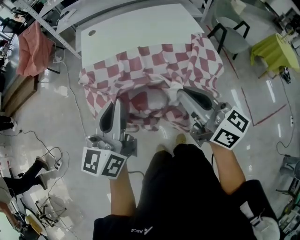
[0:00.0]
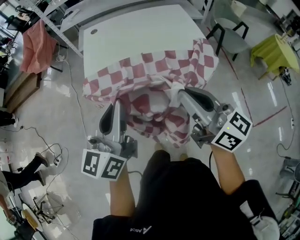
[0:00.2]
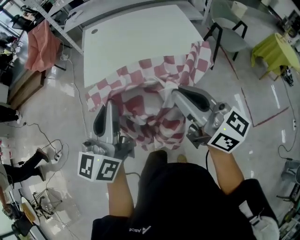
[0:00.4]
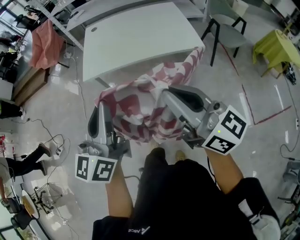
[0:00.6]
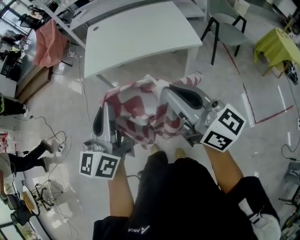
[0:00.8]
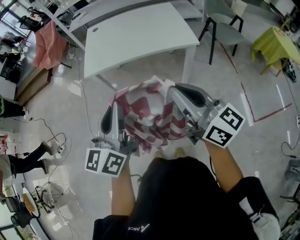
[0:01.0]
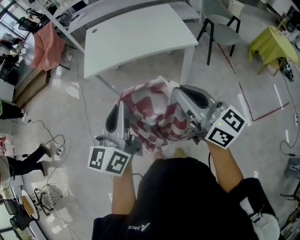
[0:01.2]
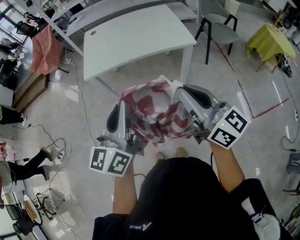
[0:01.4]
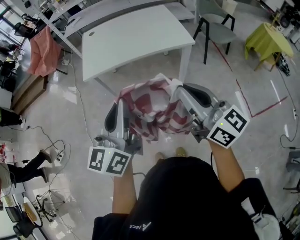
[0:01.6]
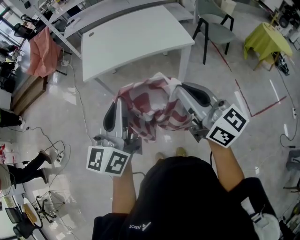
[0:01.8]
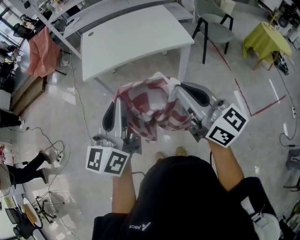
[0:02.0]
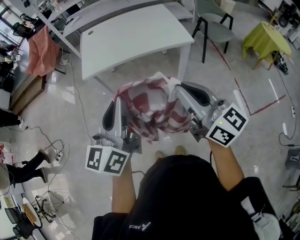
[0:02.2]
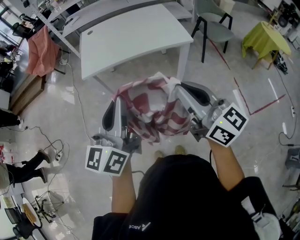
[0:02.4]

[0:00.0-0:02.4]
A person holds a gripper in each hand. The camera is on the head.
0:00.0 to 0:01.2: The grippers both shift backward by some 25 cm.
0:01.2 to 0:02.4: The grippers move only a little.

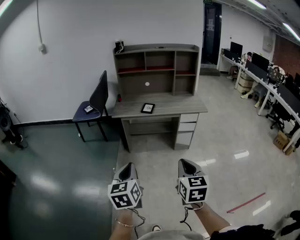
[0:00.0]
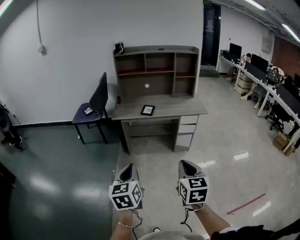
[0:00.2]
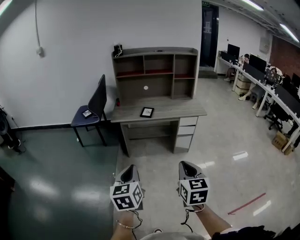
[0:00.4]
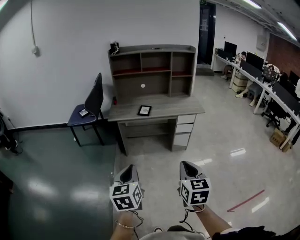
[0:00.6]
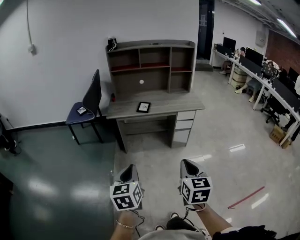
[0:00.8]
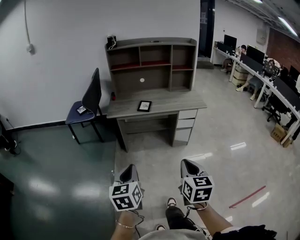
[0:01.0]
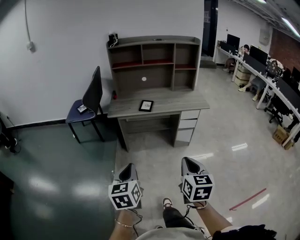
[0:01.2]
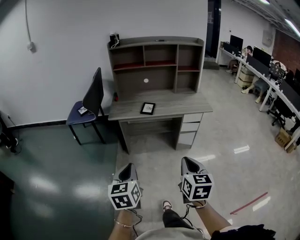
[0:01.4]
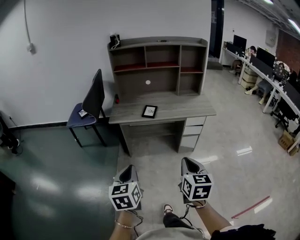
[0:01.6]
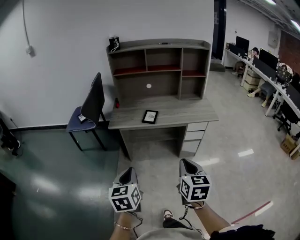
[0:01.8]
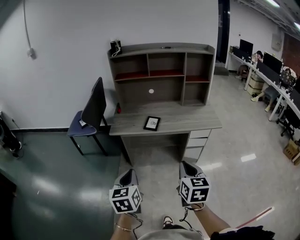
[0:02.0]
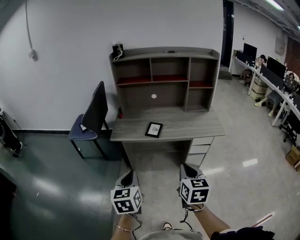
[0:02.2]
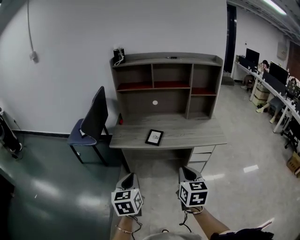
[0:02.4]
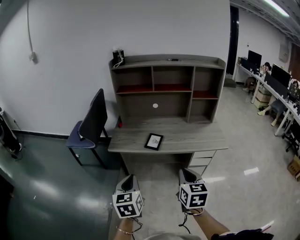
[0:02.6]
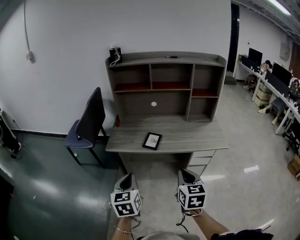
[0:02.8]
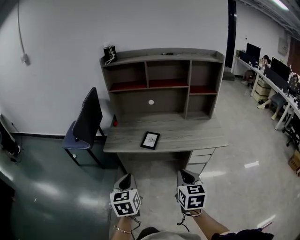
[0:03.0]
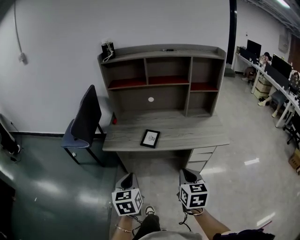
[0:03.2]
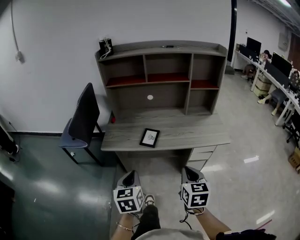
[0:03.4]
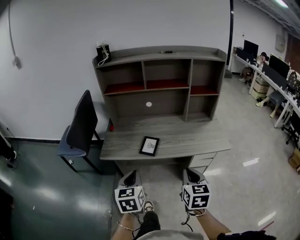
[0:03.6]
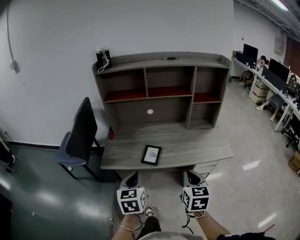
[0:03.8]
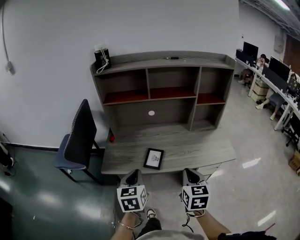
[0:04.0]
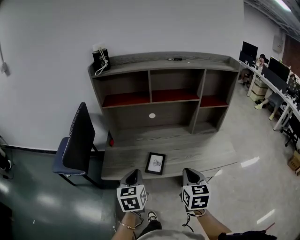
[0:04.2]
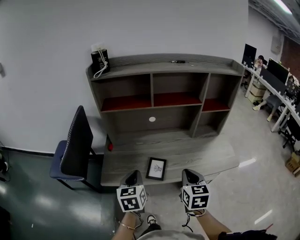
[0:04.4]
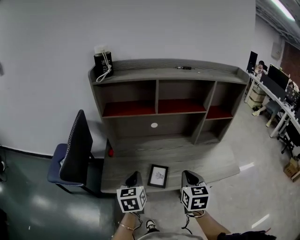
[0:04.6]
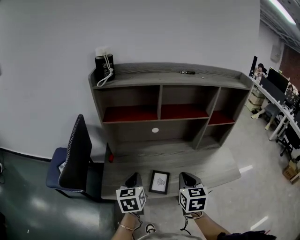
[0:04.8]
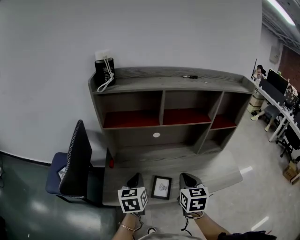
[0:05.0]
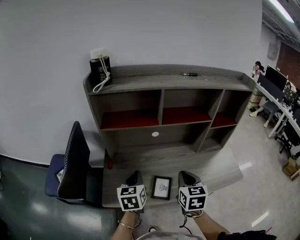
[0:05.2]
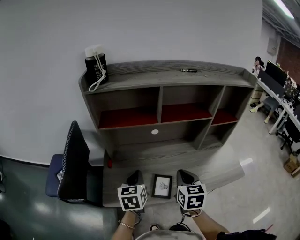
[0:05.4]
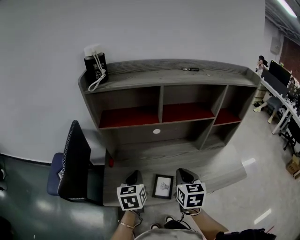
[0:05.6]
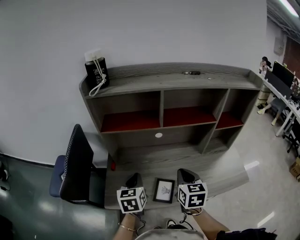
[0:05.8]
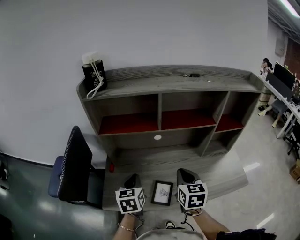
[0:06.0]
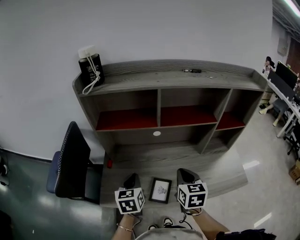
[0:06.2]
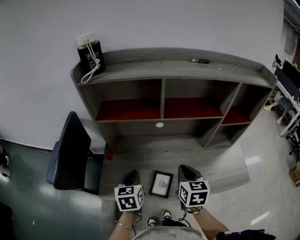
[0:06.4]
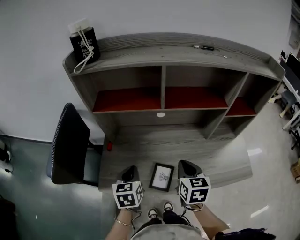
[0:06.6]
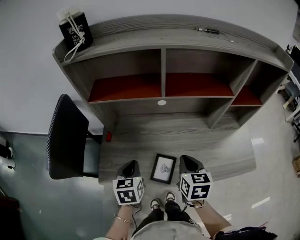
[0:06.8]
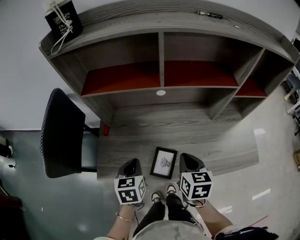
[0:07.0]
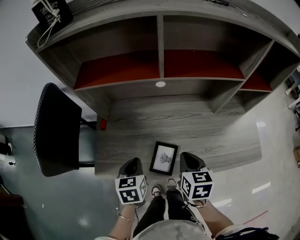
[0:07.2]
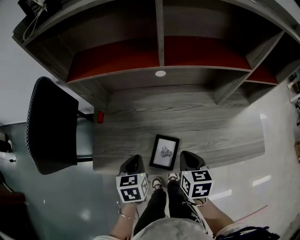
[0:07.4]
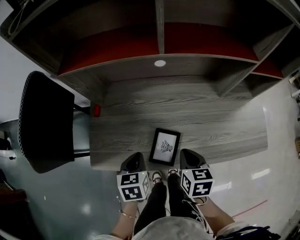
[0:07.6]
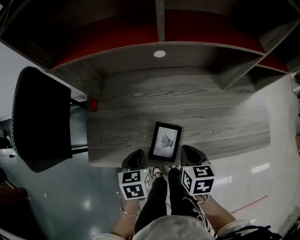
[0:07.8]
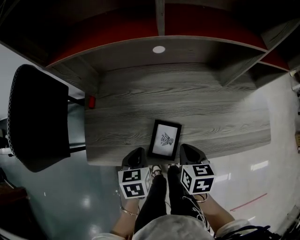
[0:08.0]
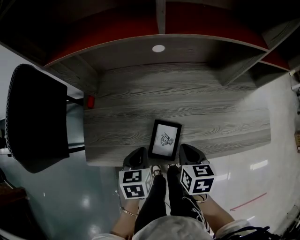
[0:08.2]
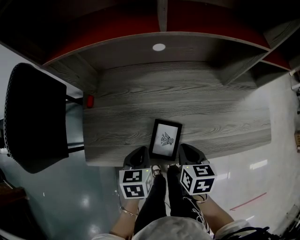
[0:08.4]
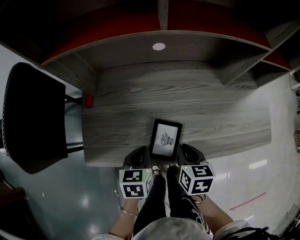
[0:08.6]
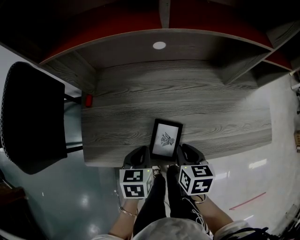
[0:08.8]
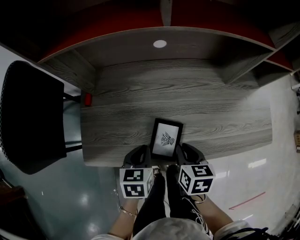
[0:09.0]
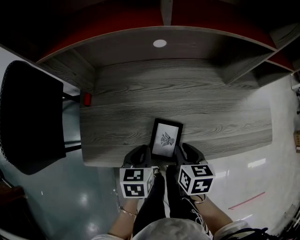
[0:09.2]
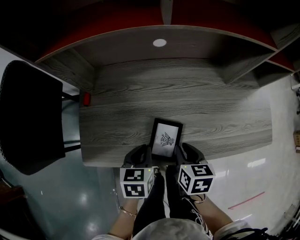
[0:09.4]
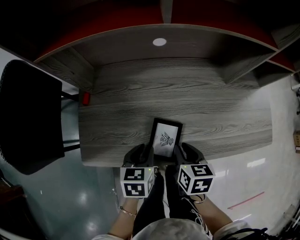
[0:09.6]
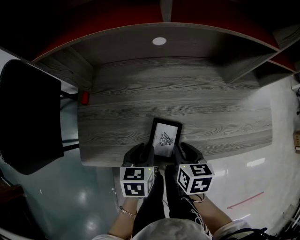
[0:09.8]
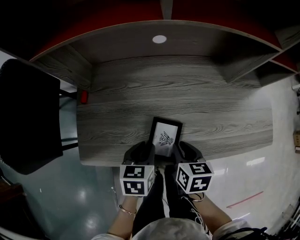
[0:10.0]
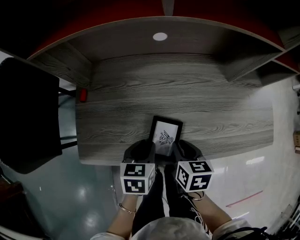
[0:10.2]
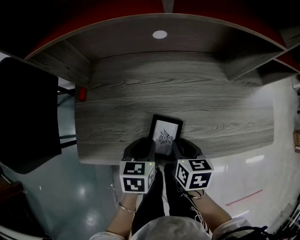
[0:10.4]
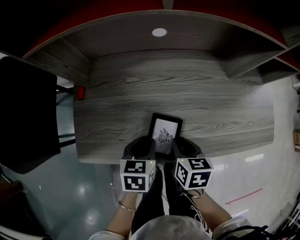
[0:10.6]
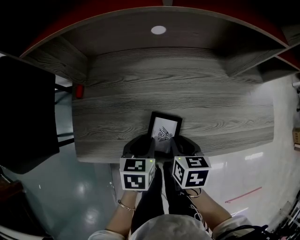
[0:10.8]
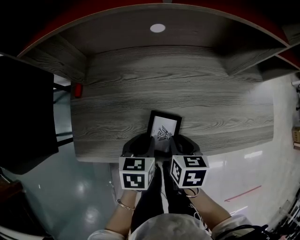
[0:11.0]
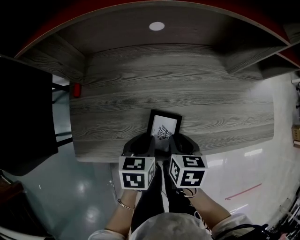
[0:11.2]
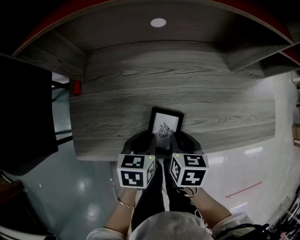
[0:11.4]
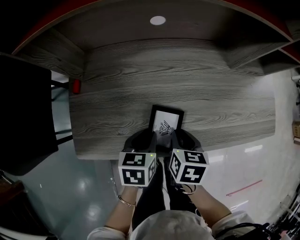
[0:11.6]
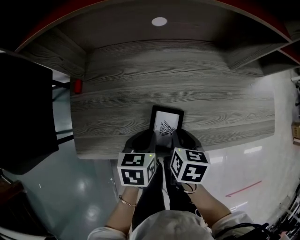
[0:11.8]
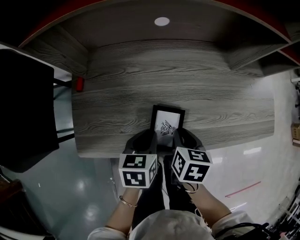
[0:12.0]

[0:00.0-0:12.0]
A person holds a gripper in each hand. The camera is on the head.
0:00.0 to 0:01.6: Both grippers travel together forward, about 15 cm.
0:01.6 to 0:03.0: Both grippers move forward, about 25 cm.
0:03.0 to 0:04.4: The two grippers go some 25 cm forward.
0:04.4 to 0:06.0: The two grippers go approximately 15 cm forward.
0:06.0 to 0:07.6: Both grippers travel together downward, about 20 cm. The right gripper rotates some 30 degrees, while the left gripper turns by roughly 20 degrees.
0:07.6 to 0:09.0: The right gripper shifts by about 5 cm.
0:09.0 to 0:10.4: The left gripper opens.
0:10.4 to 0:12.0: The grippers stay close to where they were, moving slightly.

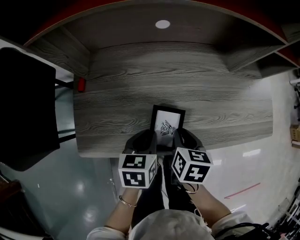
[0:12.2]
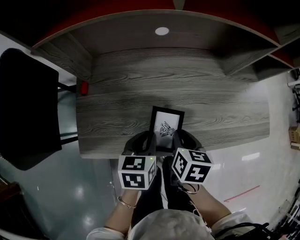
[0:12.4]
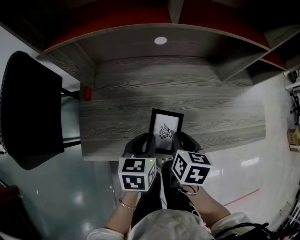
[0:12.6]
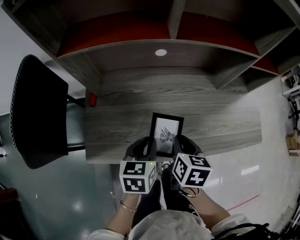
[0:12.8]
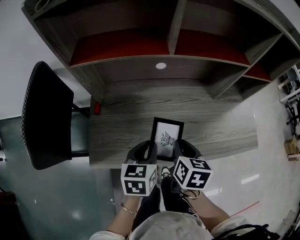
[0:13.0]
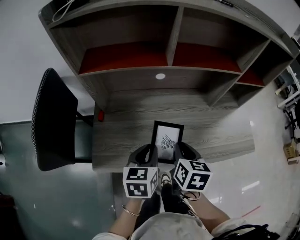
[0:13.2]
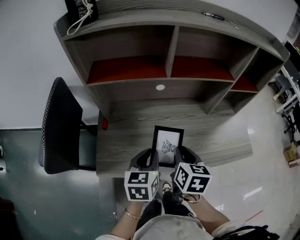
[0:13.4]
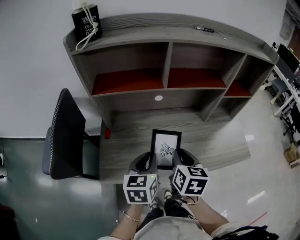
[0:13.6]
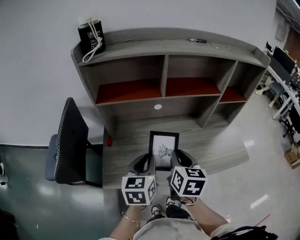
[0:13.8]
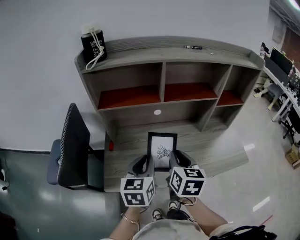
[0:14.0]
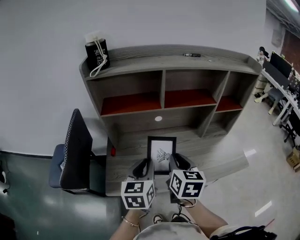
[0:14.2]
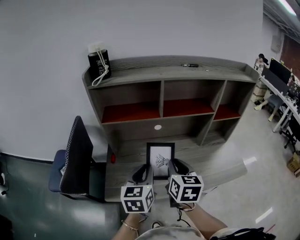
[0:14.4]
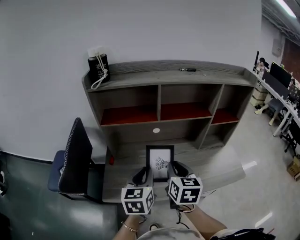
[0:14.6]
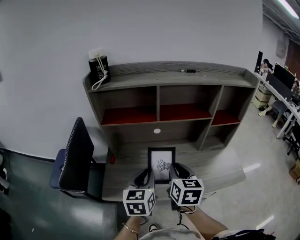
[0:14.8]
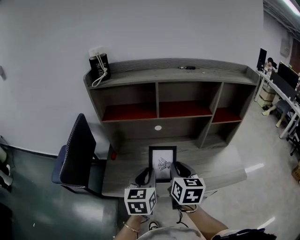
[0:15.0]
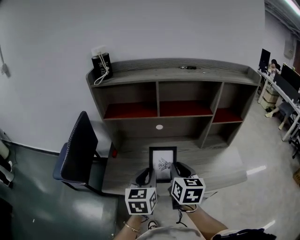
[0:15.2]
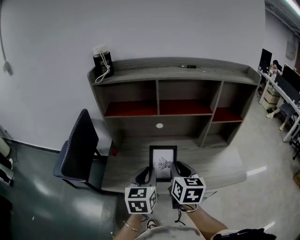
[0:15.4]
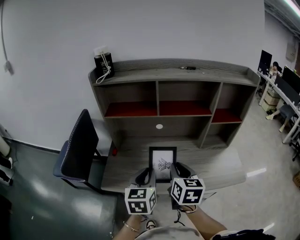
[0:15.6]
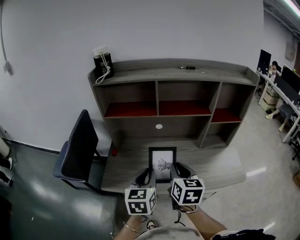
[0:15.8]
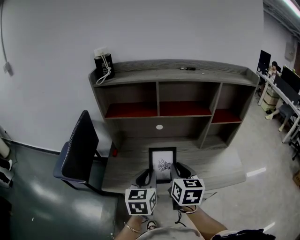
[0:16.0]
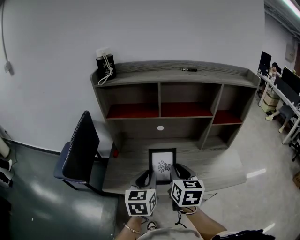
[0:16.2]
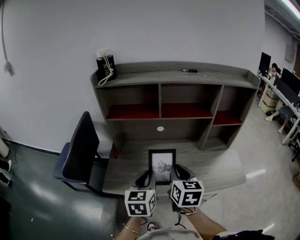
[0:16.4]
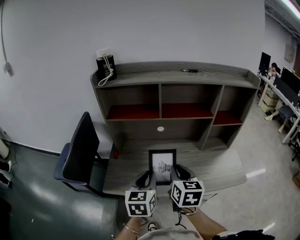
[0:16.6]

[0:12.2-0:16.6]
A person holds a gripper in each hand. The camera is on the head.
0:12.2 to 0:13.6: The two grippers go approximately 20 cm upward. The left gripper turns by about 20 degrees; the right gripper changes its angle by some 20 degrees.
0:13.6 to 0:15.2: Both grippers travel together upward, roughly 5 cm.
0:15.2 to 0:16.6: The grippers move only a little.

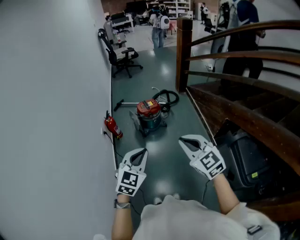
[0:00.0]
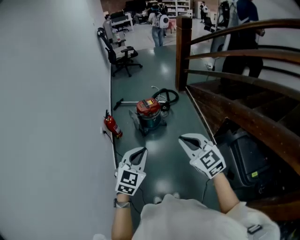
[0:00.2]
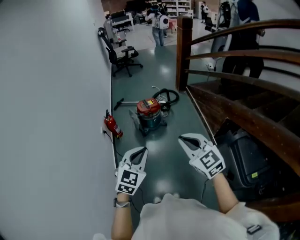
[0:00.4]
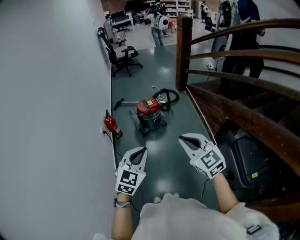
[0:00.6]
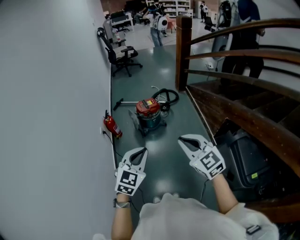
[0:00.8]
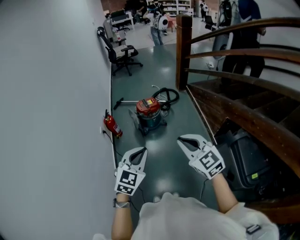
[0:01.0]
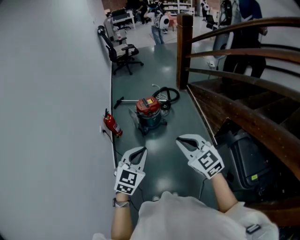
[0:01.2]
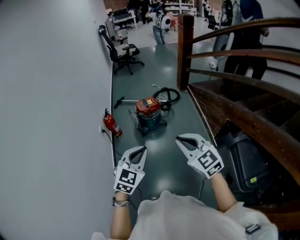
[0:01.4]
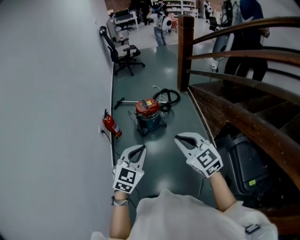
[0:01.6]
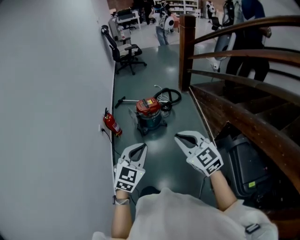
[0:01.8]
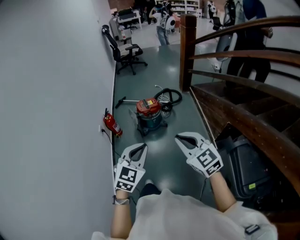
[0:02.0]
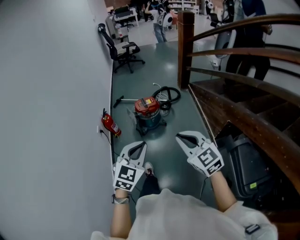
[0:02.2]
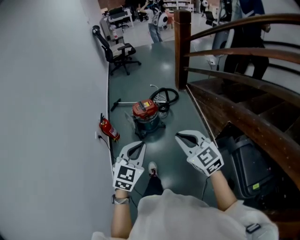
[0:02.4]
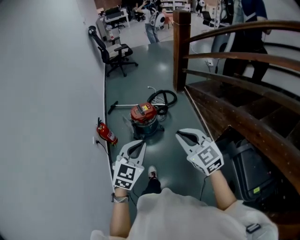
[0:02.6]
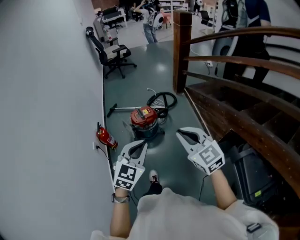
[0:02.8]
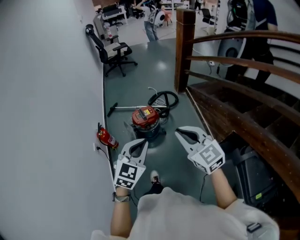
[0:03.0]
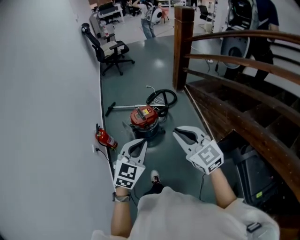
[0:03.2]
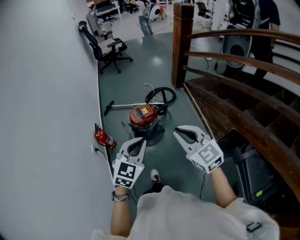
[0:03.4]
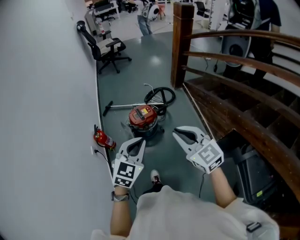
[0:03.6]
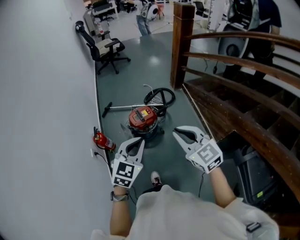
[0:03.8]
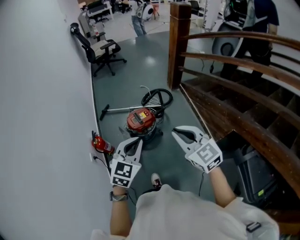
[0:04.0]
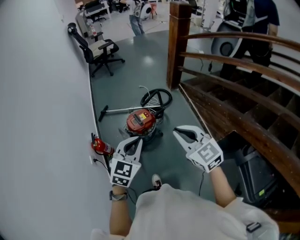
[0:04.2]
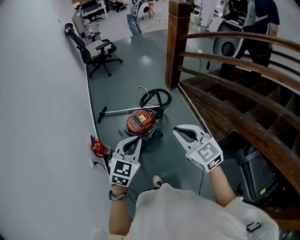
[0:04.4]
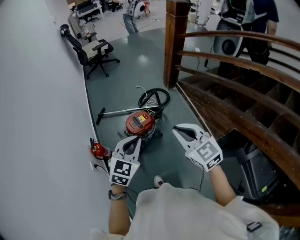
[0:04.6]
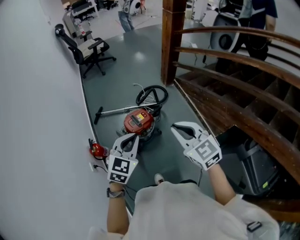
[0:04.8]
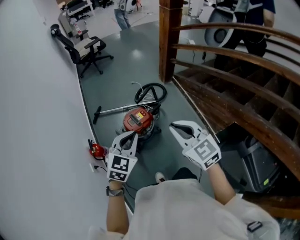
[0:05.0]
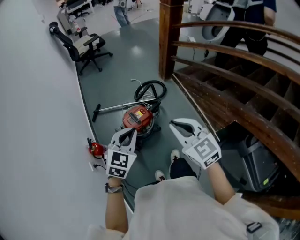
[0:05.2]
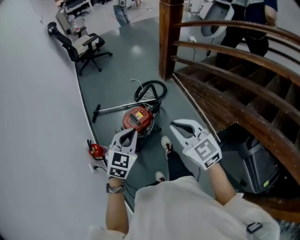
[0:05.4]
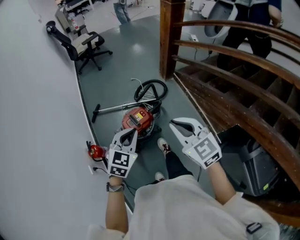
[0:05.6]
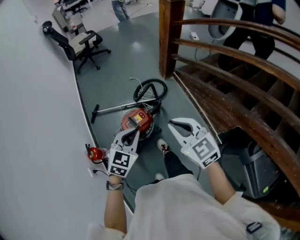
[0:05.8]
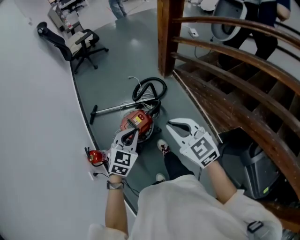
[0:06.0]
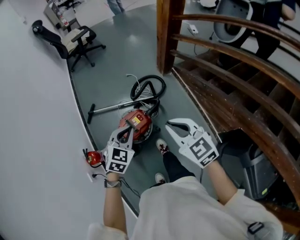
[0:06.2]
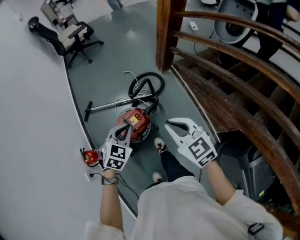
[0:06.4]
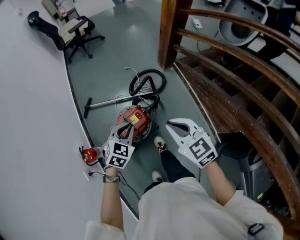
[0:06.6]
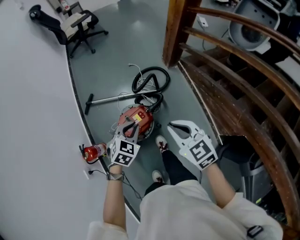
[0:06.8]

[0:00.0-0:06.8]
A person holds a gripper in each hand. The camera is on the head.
0:00.0 to 0:01.4: There are only small adjustments of the grippers.
0:01.4 to 0:02.8: Both grippers travel together forward, roughly 20 cm.
0:02.8 to 0:04.0: Both grippers move forward, some 15 cm.
0:04.0 to 0:05.4: Both grippers travel together forward, roughly 15 cm.
0:05.4 to 0:06.8: Both grippers move forward and downward, some 25 cm.
